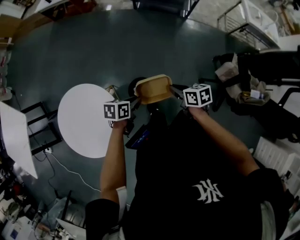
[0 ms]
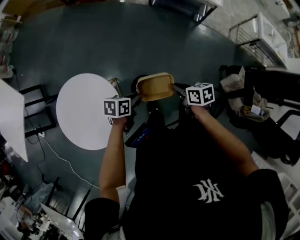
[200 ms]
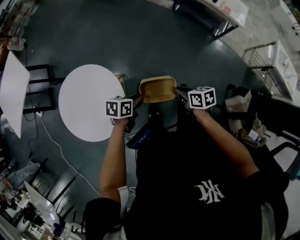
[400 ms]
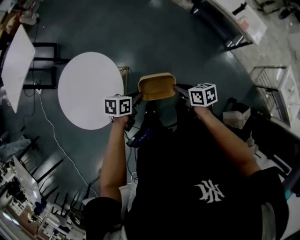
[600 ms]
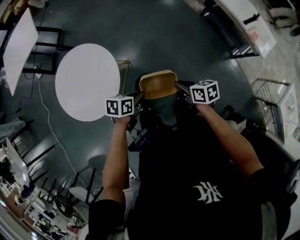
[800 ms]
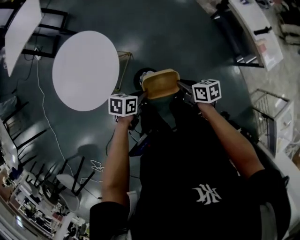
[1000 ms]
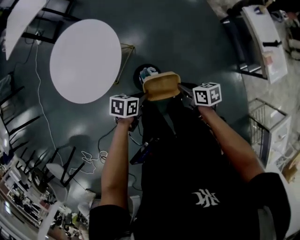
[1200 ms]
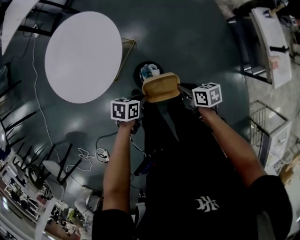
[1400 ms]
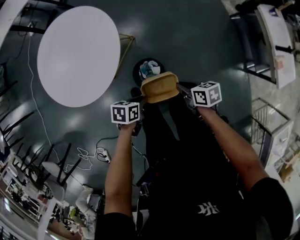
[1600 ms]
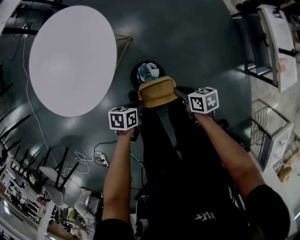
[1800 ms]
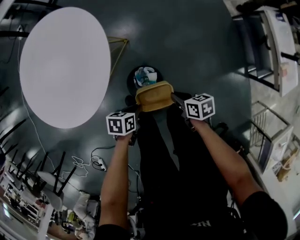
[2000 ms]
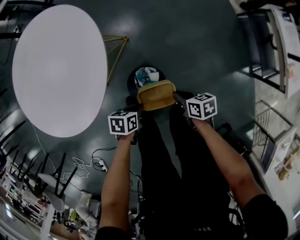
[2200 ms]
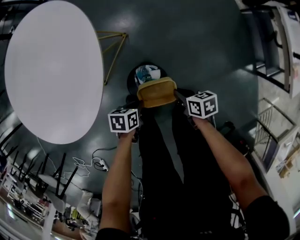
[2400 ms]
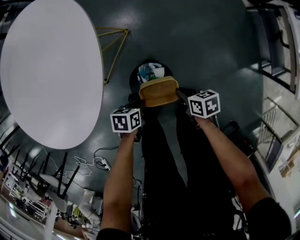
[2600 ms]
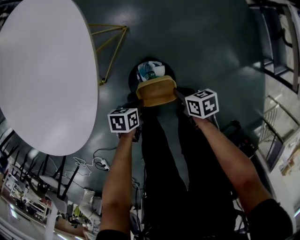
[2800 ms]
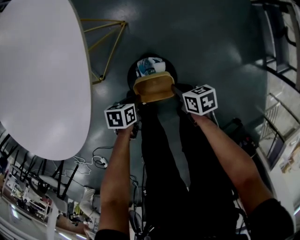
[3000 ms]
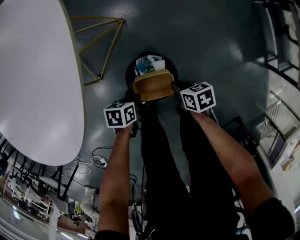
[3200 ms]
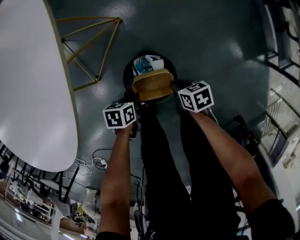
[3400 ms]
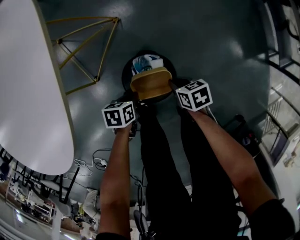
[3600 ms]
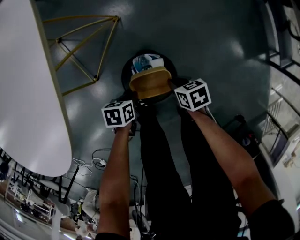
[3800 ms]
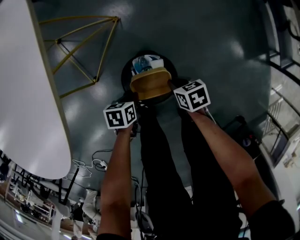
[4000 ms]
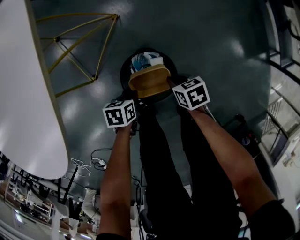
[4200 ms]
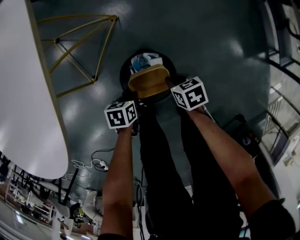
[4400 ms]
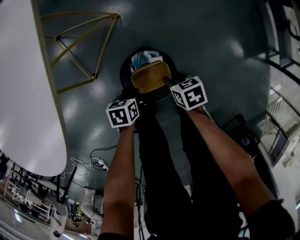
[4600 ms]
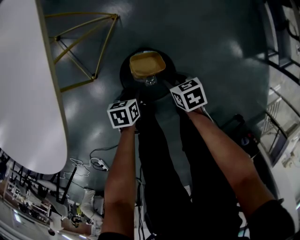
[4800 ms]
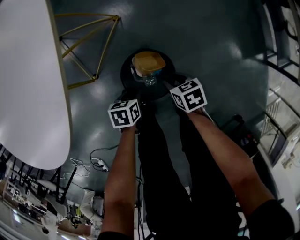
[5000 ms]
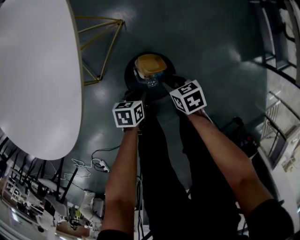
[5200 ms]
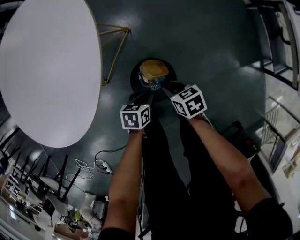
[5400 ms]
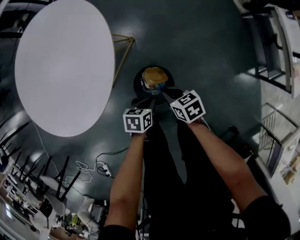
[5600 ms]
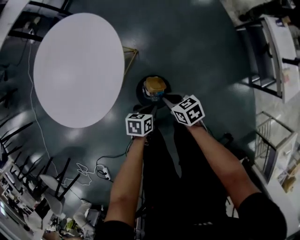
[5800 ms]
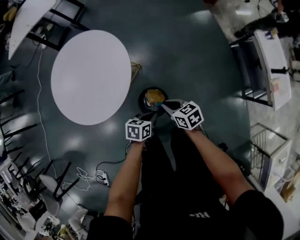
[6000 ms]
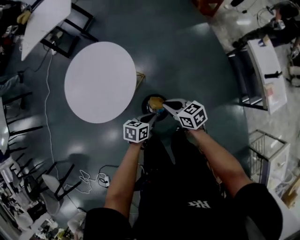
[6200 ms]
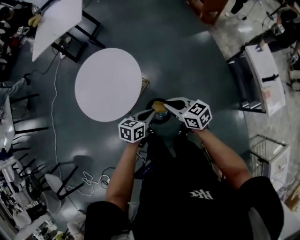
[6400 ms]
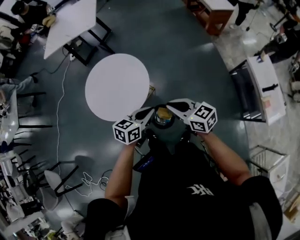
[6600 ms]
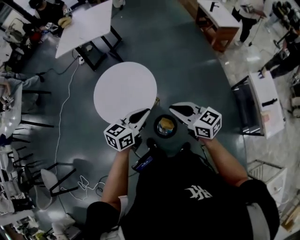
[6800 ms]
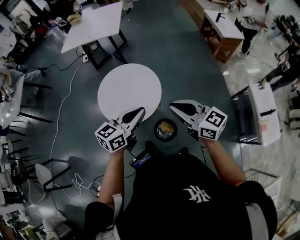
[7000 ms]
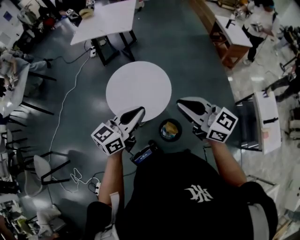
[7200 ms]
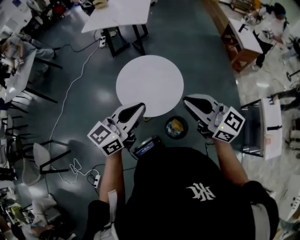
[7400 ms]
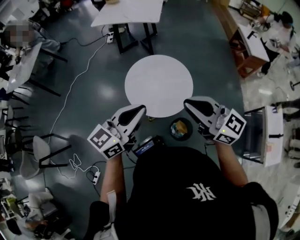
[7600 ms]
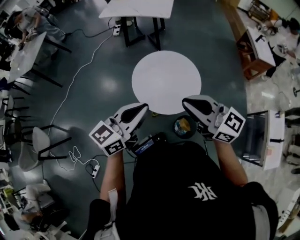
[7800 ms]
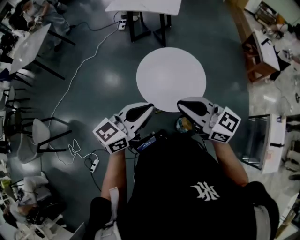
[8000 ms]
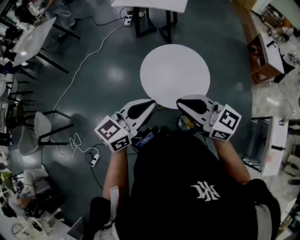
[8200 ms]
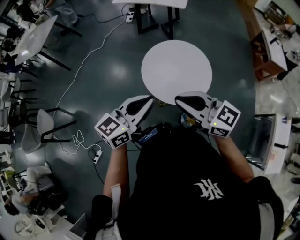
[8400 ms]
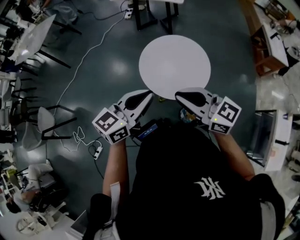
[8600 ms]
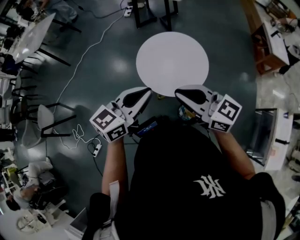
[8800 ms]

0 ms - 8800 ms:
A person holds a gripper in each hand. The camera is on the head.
0 ms - 1400 ms: The right gripper moves approximately 20 cm, and swivels about 60 degrees. Meanwhile the left gripper heads downward, covering about 10 cm, and rotates approximately 50 degrees.
1400 ms - 3000 ms: Both grippers travel together downward, approximately 30 cm.
3000 ms - 4400 ms: Both grippers travel together downward, some 5 cm.
4400 ms - 5800 ms: The grippers both shift upward by roughly 25 cm. The right gripper opens, then closes again.
5800 ms - 7400 ms: The two grippers go about 60 cm upward. The left gripper angles its fingers upward, by roughly 50 degrees; the right gripper tilts its fingers approximately 50 degrees upward.
7400 ms - 8800 ms: The right gripper moves to the left and downward, approximately 15 cm. The left gripper shifts roughly 5 cm to the left.

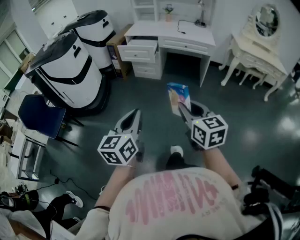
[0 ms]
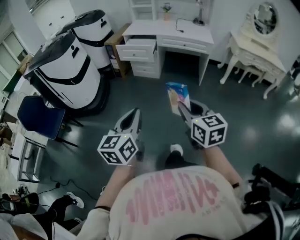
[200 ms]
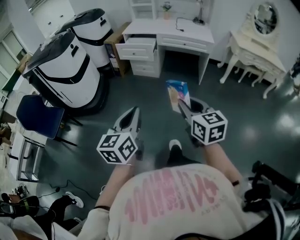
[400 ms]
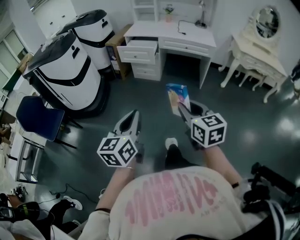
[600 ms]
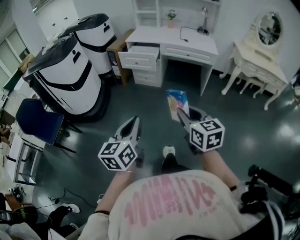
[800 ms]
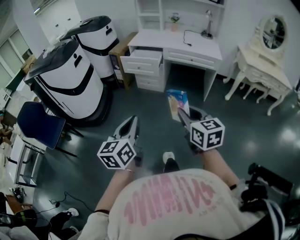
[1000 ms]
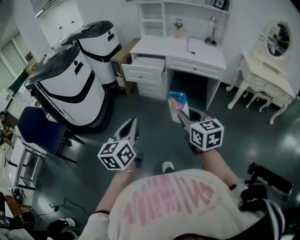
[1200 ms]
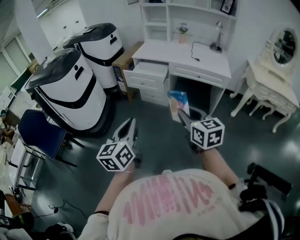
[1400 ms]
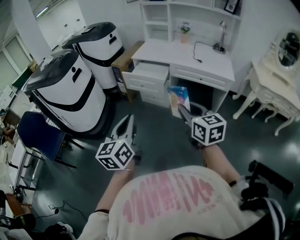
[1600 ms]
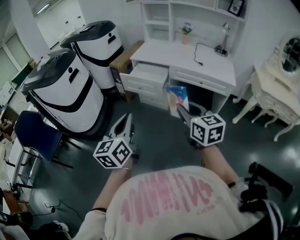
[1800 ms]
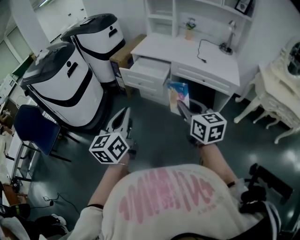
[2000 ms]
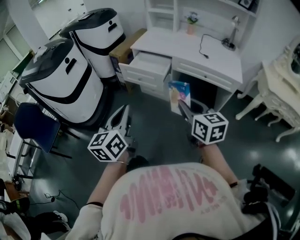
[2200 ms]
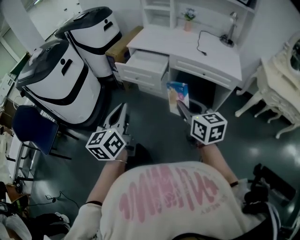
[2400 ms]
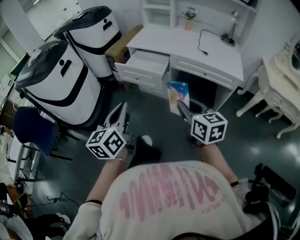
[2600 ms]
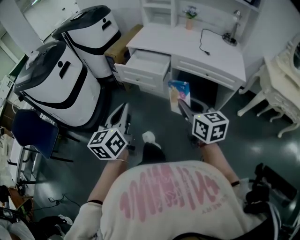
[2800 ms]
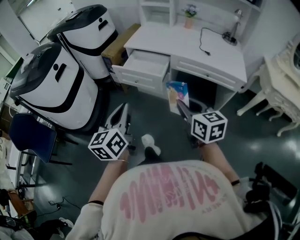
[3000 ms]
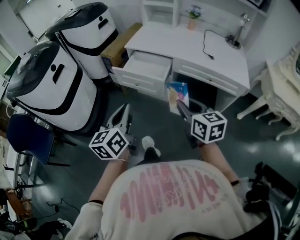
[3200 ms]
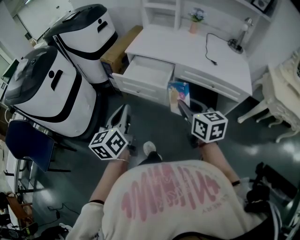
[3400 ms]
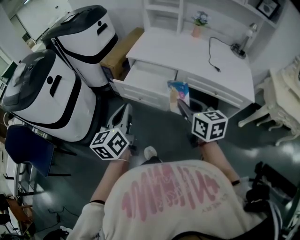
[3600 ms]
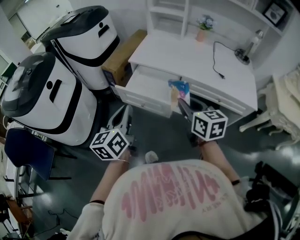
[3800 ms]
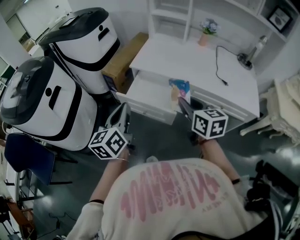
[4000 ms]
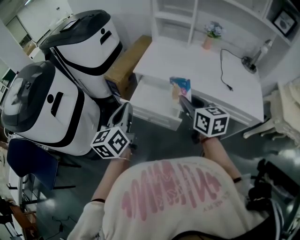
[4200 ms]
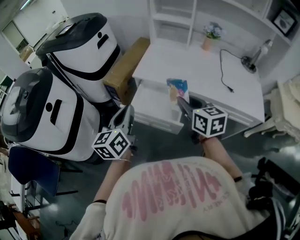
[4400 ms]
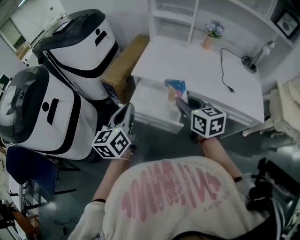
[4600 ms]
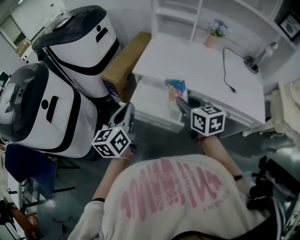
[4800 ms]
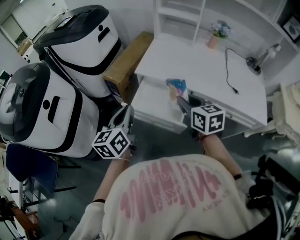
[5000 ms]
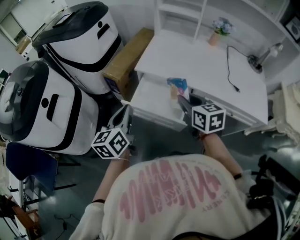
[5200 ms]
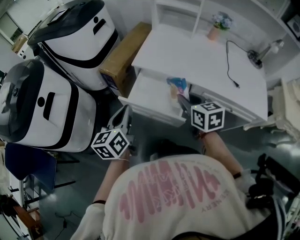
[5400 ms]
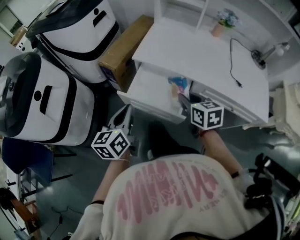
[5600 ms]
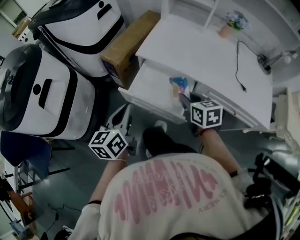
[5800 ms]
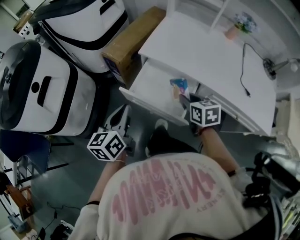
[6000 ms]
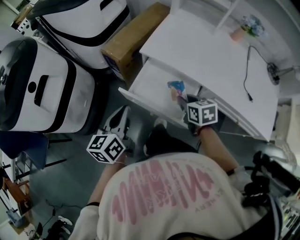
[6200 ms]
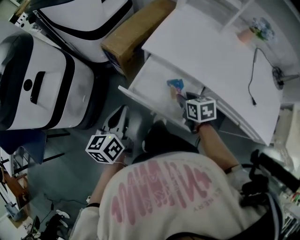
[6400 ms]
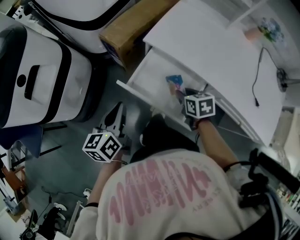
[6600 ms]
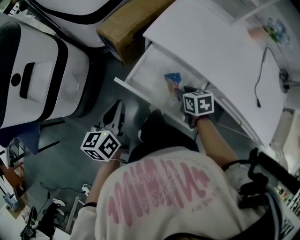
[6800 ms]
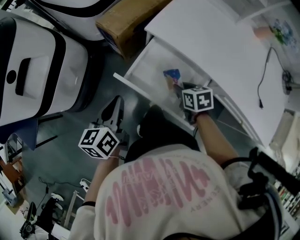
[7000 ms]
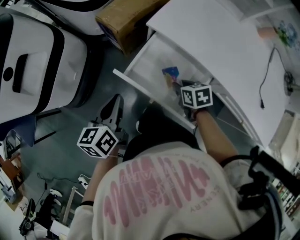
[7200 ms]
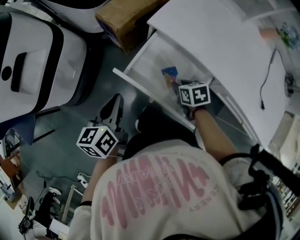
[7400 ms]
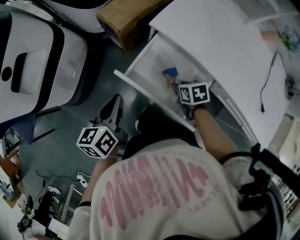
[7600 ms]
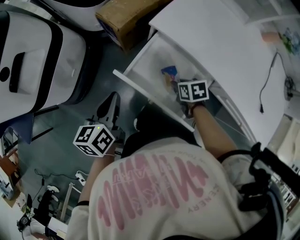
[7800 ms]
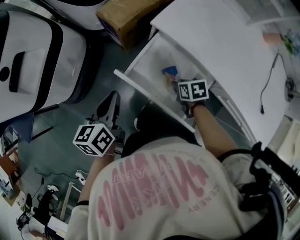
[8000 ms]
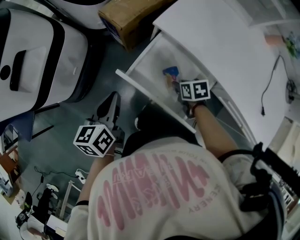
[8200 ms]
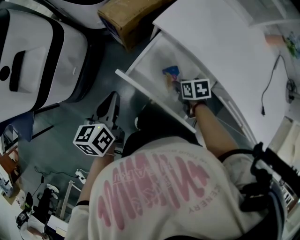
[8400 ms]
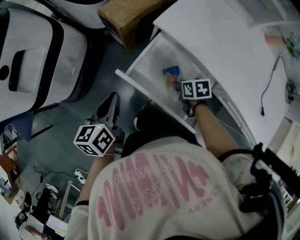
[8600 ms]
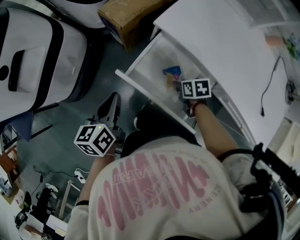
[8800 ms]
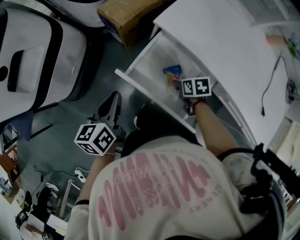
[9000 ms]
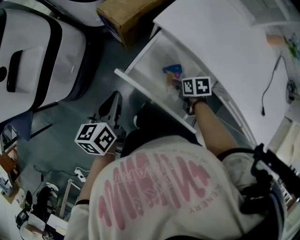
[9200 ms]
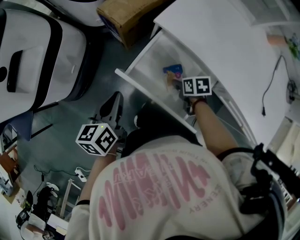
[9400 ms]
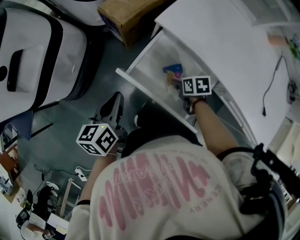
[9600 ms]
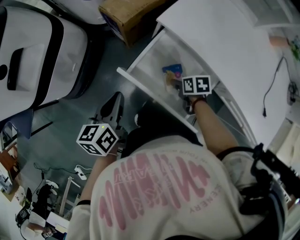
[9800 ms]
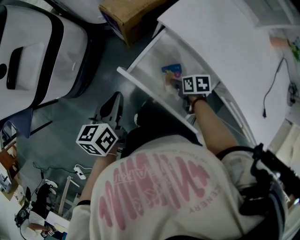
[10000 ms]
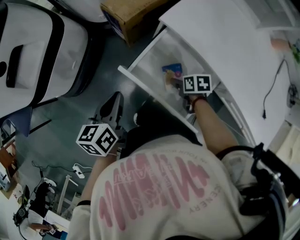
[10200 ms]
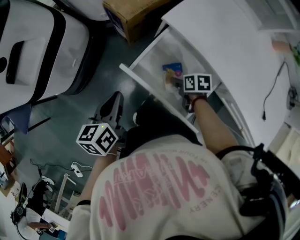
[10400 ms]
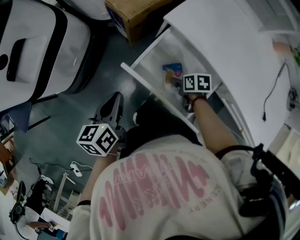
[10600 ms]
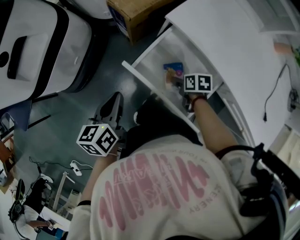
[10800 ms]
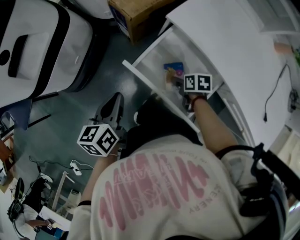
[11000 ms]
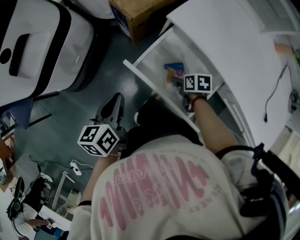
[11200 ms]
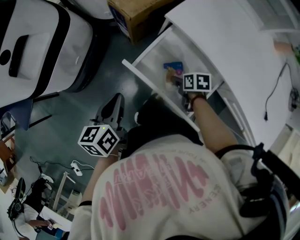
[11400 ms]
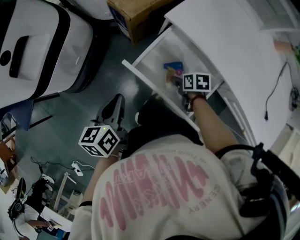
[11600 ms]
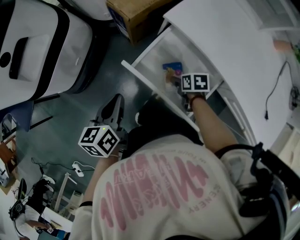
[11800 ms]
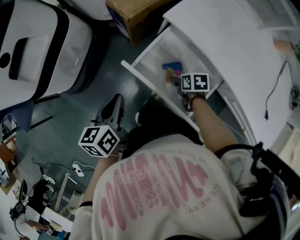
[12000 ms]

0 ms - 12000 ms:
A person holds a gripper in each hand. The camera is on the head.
0 ms - 1600 ms: The two grippers go approximately 30 cm forward.
1600 ms - 3000 ms: The right gripper is displaced forward and downward by approximately 20 cm. Meanwhile the left gripper moves forward, about 20 cm.
3000 ms - 4400 ms: The grippers both shift forward by roughly 35 cm.
4400 ms - 6000 ms: The left gripper is displaced downward by approximately 10 cm; the right gripper is displaced downward and forward by approximately 20 cm, and rotates roughly 20 degrees.
6000 ms - 7600 ms: The left gripper heads downward, covering about 10 cm; the right gripper heads downward, covering some 20 cm, and rotates some 30 degrees.
7600 ms - 12000 ms: There are only small adjustments of the grippers.

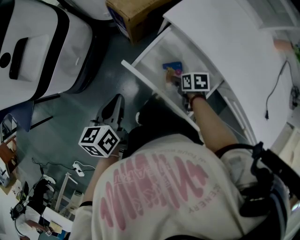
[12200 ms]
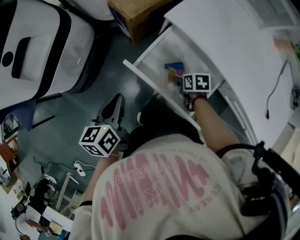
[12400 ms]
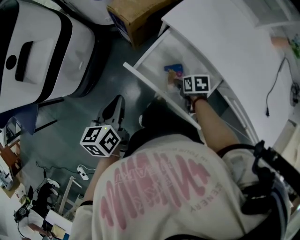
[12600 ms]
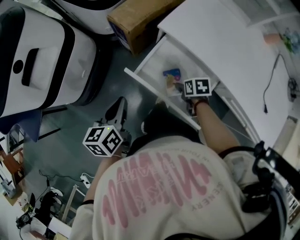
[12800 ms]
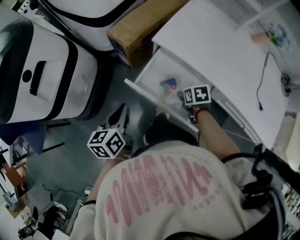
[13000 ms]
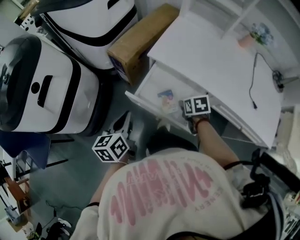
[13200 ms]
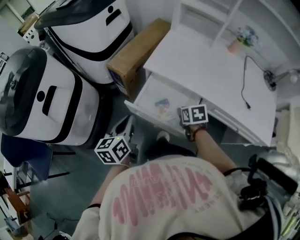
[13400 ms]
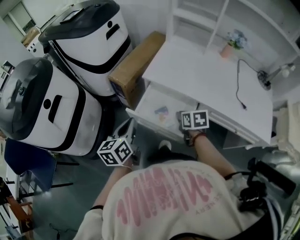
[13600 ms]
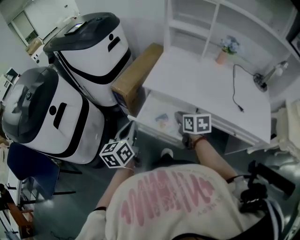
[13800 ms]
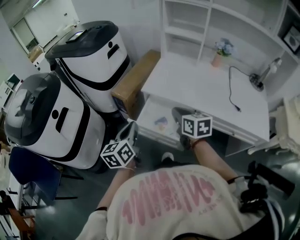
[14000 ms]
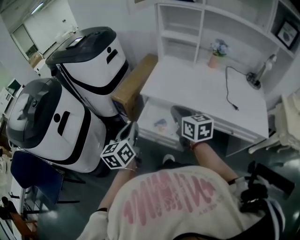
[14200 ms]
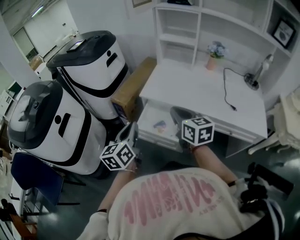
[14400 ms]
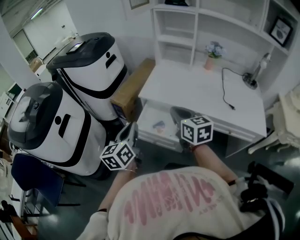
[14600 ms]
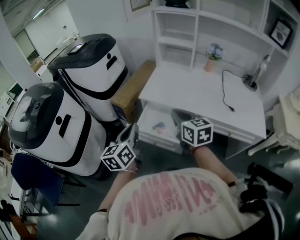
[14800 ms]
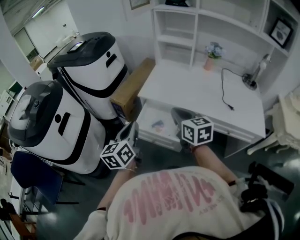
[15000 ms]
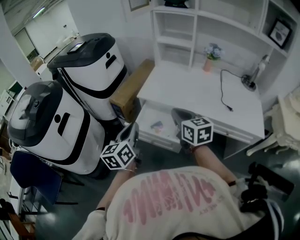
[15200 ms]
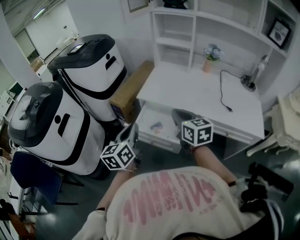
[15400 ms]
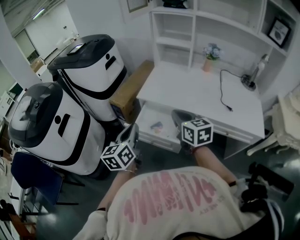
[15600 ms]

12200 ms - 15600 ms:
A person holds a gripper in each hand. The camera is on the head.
12200 ms - 13800 ms: The left gripper is displaced upward by roughly 15 cm, and rotates roughly 20 degrees. Meanwhile the right gripper is displaced upward by roughly 30 cm, rotates about 40 degrees, and closes.
13800 ms - 15600 ms: The right gripper travels upward and backward by about 15 cm, and turns by about 20 degrees. The left gripper shifts some 5 cm upward.
